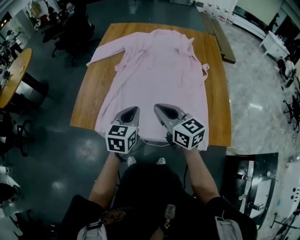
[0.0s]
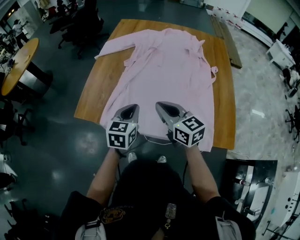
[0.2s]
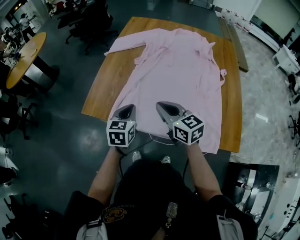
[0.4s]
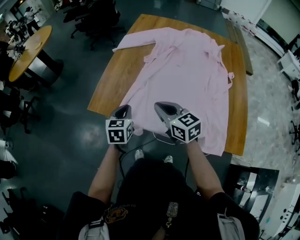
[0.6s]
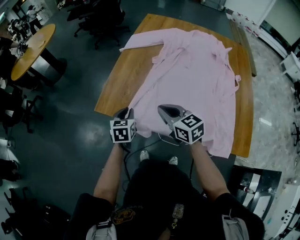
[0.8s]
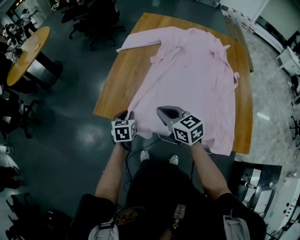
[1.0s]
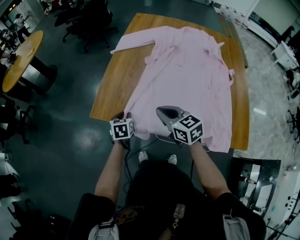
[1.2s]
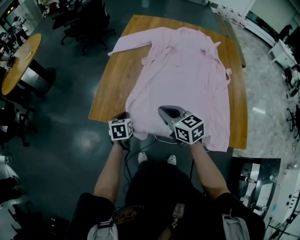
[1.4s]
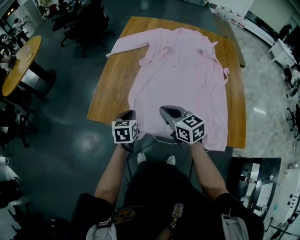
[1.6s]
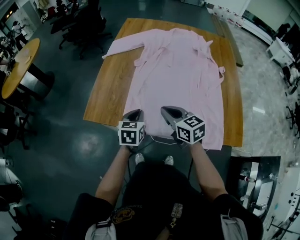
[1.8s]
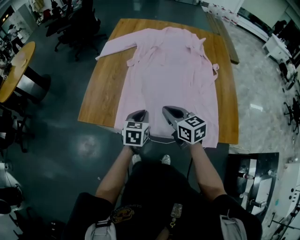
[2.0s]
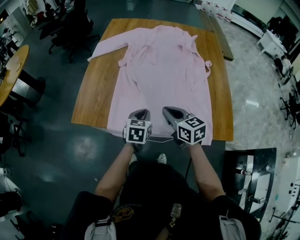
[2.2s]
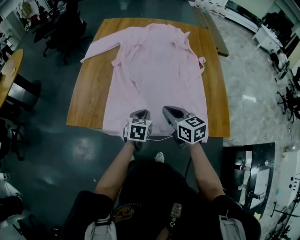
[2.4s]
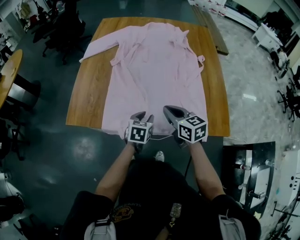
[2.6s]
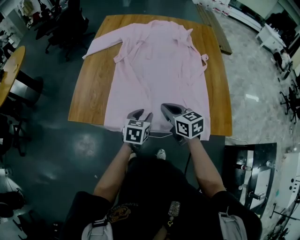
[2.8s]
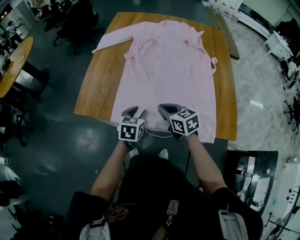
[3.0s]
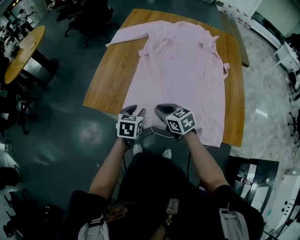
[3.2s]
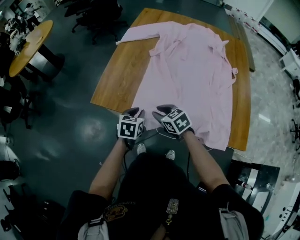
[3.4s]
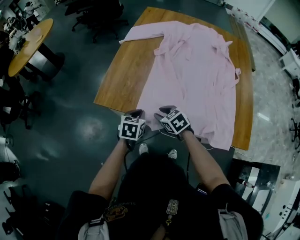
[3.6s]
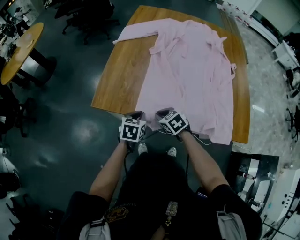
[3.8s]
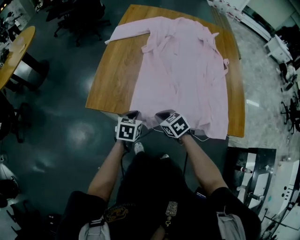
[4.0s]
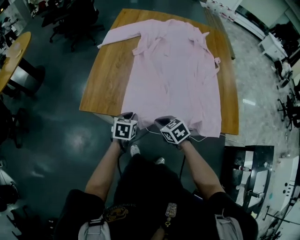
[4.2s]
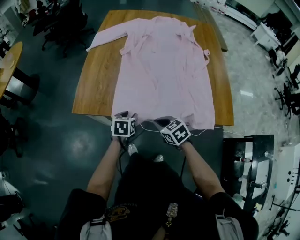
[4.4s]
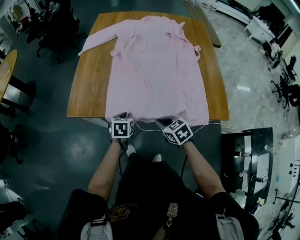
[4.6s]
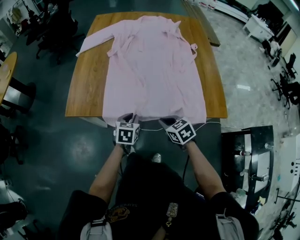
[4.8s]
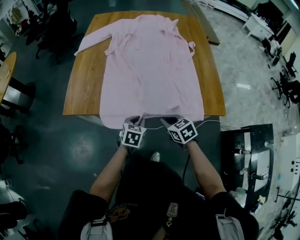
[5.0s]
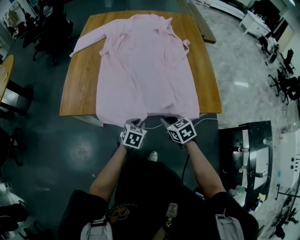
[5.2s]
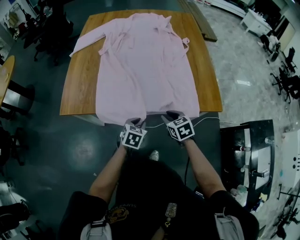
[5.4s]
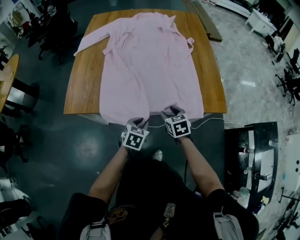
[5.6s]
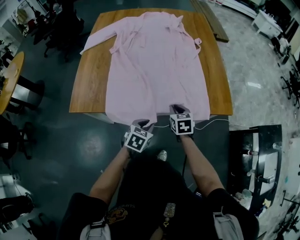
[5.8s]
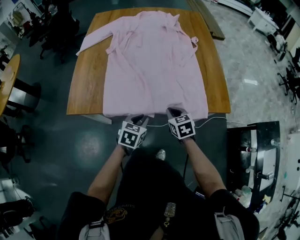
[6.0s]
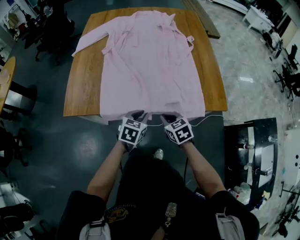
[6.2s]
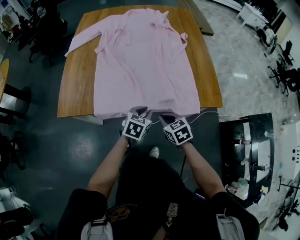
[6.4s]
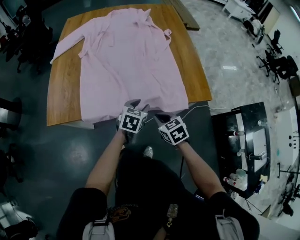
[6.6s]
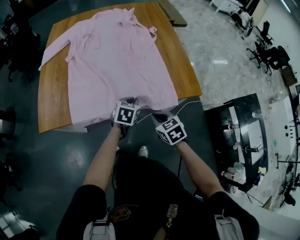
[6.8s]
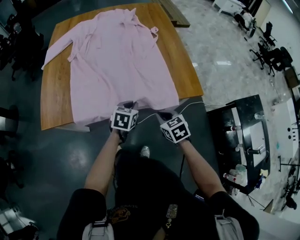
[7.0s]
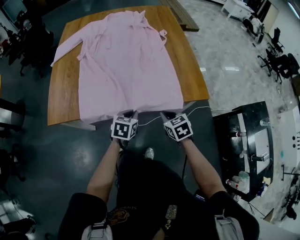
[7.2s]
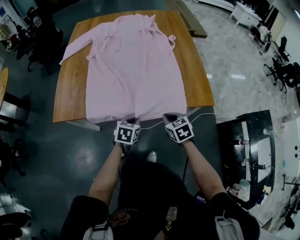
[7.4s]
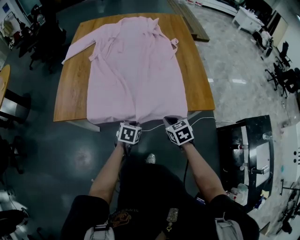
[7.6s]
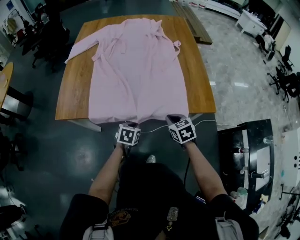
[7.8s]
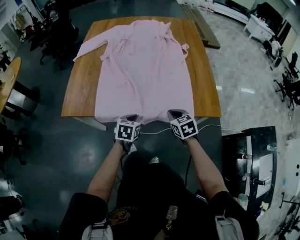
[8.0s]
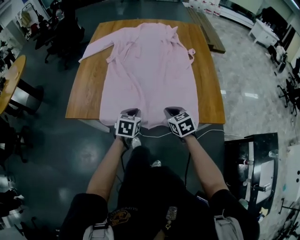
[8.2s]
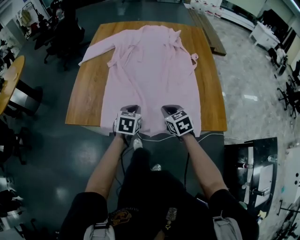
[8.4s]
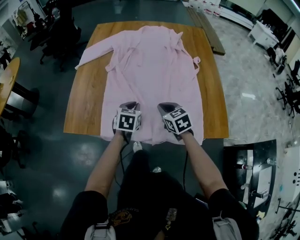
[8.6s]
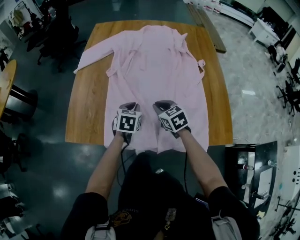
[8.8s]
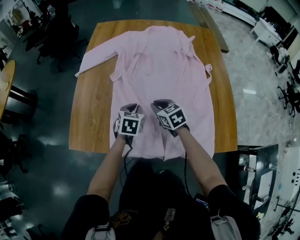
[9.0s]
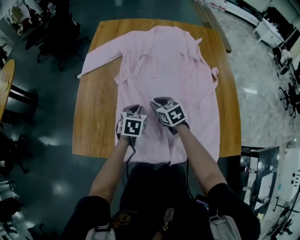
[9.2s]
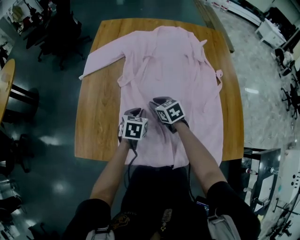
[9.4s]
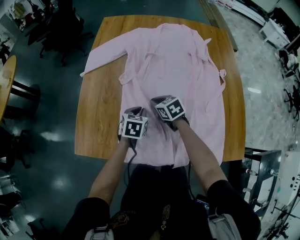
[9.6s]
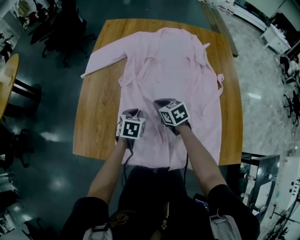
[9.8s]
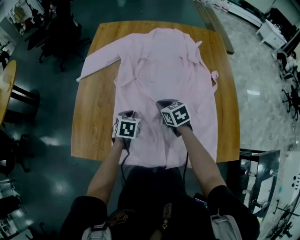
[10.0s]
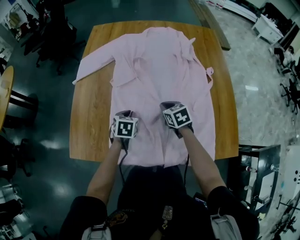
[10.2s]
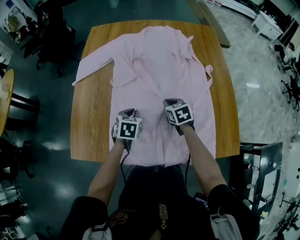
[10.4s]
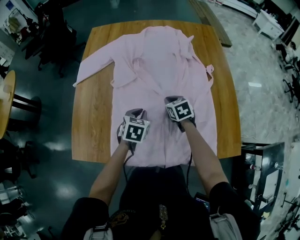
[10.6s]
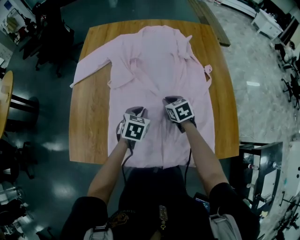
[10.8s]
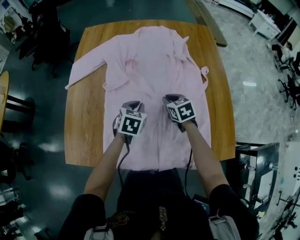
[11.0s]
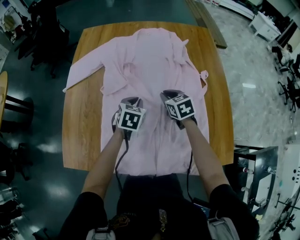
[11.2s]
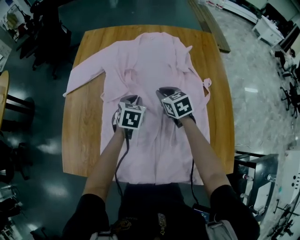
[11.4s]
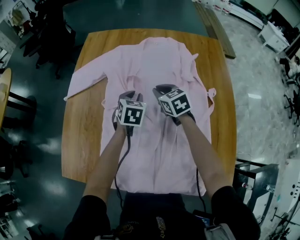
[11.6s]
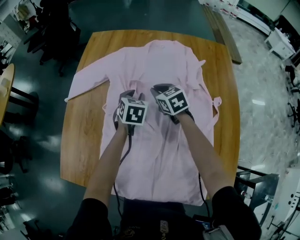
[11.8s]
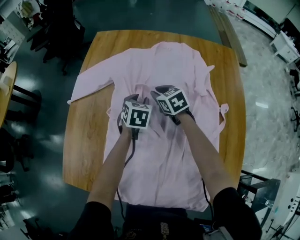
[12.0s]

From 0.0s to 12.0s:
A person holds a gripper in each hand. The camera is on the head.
From 0.0s to 1.6s: The left gripper travels to the left, downward and forward by roughly 20 cm, changes its angle by roughly 20 degrees, and opens, then closes once more; the right gripper goes roughly 15 cm to the left and downward.
From 1.6s to 3.0s: The right gripper heads to the right and downward, covering about 10 cm. Meanwhile the left gripper shifts roughly 15 cm to the right, and opens up.
From 3.0s to 4.4s: The right gripper shifts approximately 15 cm backward, to the left and downward, and opens, then closes once more. Meanwhile the left gripper moves to the left and downward, about 10 cm, and closes, then reopens.
From 4.4s to 6.0s: The left gripper shifts by about 15 cm, changes its angle by some 20 degrees, and closes, while the right gripper shifts by roughly 15 cm, changes its angle by some 20 degrees, and opens, then closes again.
From 6.0s to 7.6s: The left gripper goes roughly 10 cm downward and to the right. The right gripper shifts some 10 cm to the right.
From 7.6s to 9.0s: The left gripper shifts about 30 cm forward; the right gripper shifts about 35 cm forward and to the left.
From 9.0s to 10.4s: The right gripper travels to the right by some 10 cm.
From 10.4s to 12.0s: The grippers both shift forward by approximately 25 cm. The left gripper opens up.

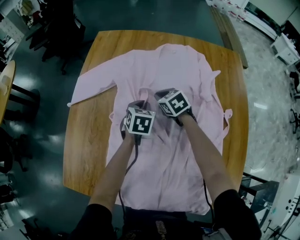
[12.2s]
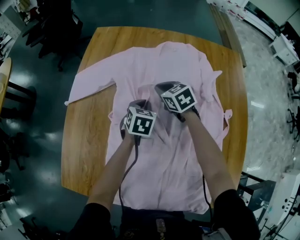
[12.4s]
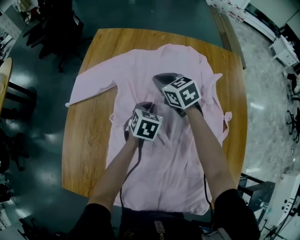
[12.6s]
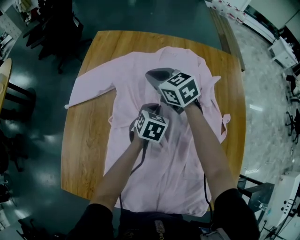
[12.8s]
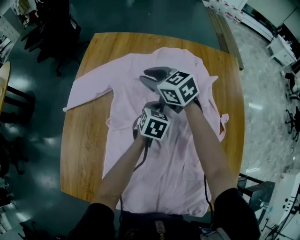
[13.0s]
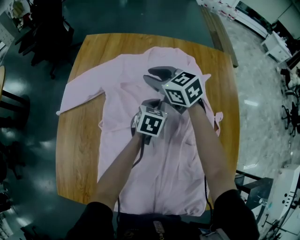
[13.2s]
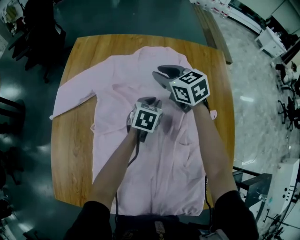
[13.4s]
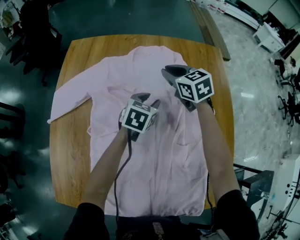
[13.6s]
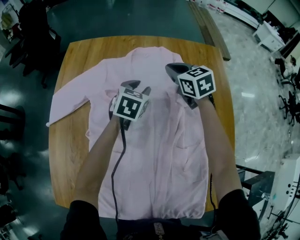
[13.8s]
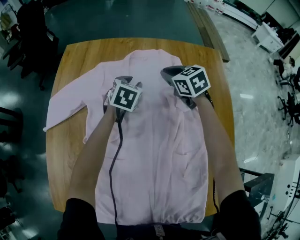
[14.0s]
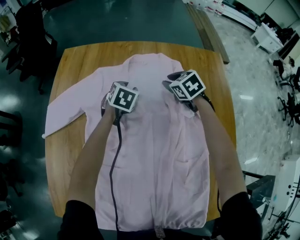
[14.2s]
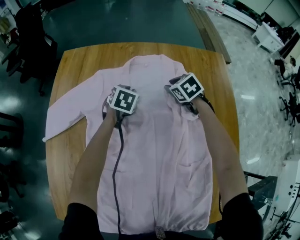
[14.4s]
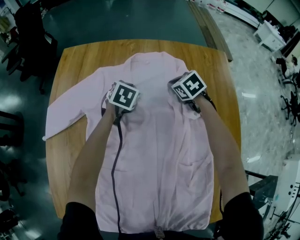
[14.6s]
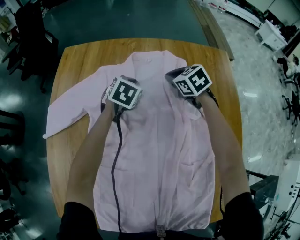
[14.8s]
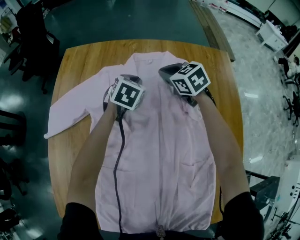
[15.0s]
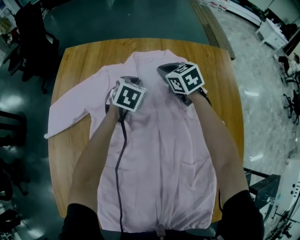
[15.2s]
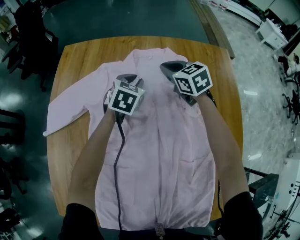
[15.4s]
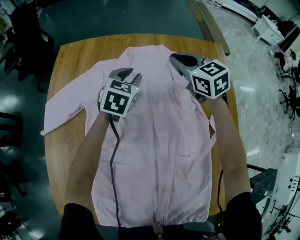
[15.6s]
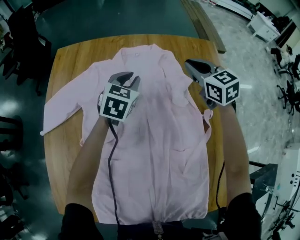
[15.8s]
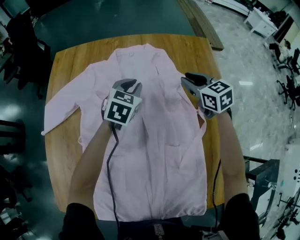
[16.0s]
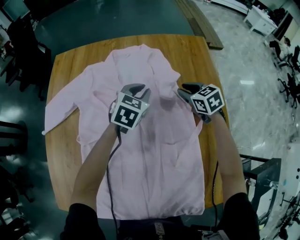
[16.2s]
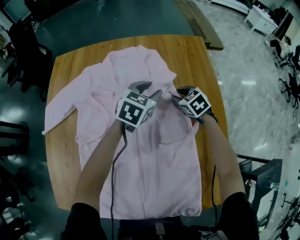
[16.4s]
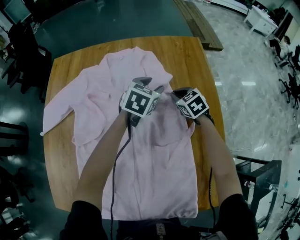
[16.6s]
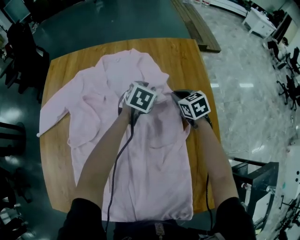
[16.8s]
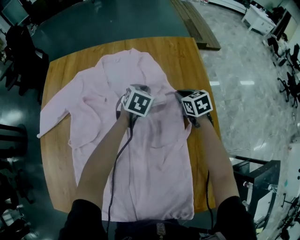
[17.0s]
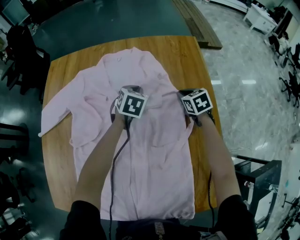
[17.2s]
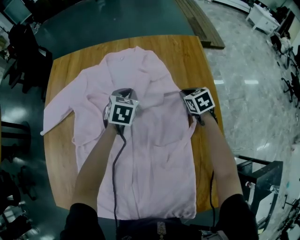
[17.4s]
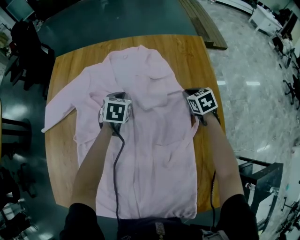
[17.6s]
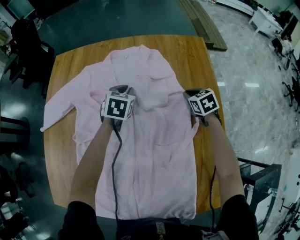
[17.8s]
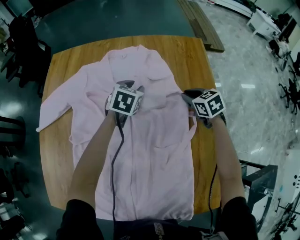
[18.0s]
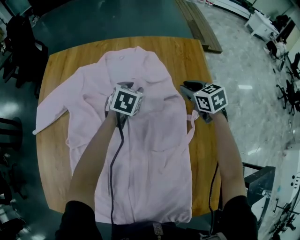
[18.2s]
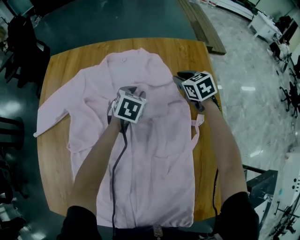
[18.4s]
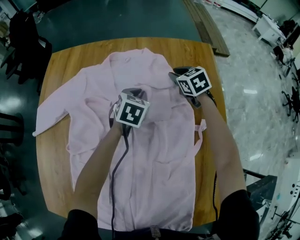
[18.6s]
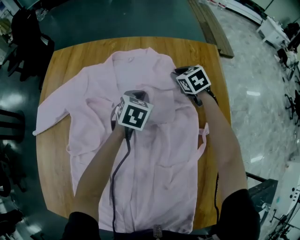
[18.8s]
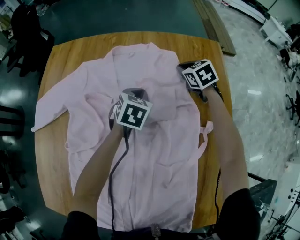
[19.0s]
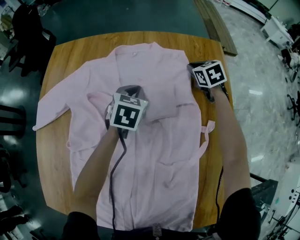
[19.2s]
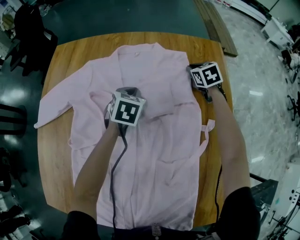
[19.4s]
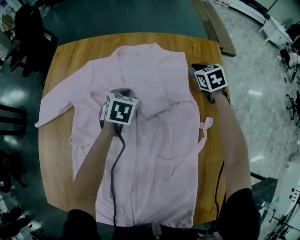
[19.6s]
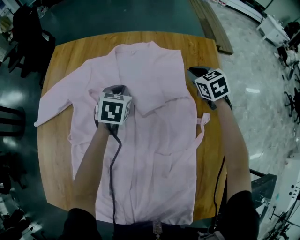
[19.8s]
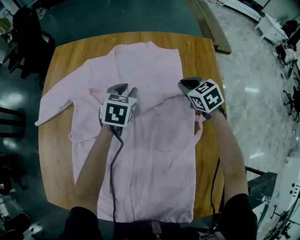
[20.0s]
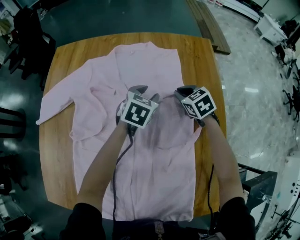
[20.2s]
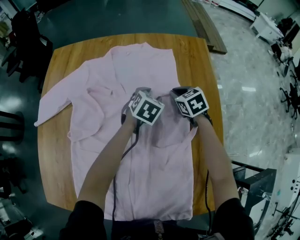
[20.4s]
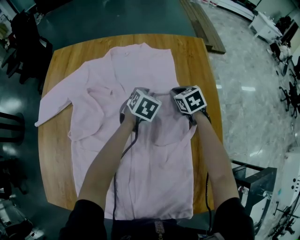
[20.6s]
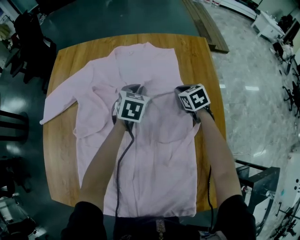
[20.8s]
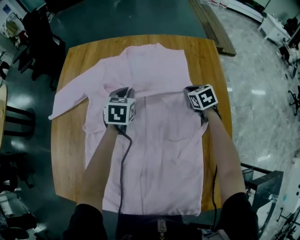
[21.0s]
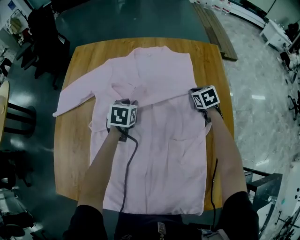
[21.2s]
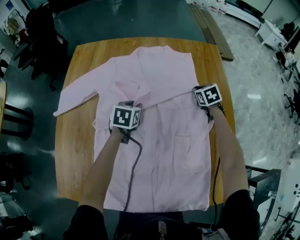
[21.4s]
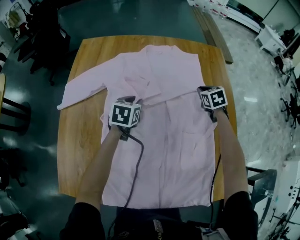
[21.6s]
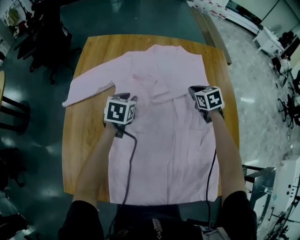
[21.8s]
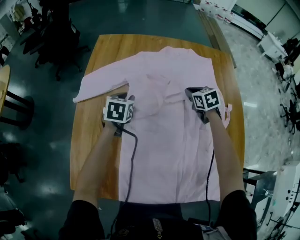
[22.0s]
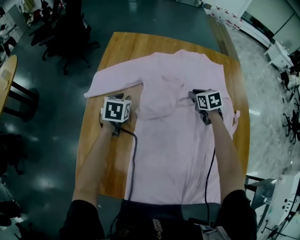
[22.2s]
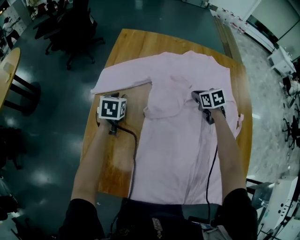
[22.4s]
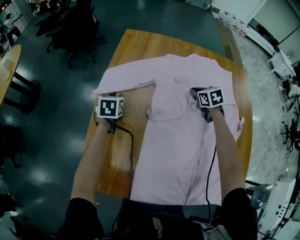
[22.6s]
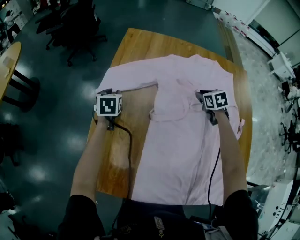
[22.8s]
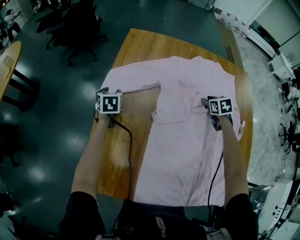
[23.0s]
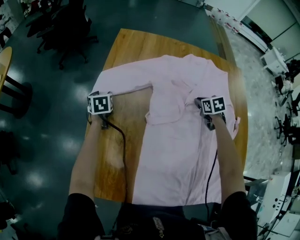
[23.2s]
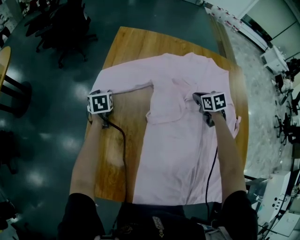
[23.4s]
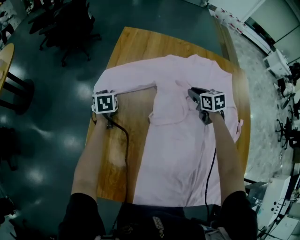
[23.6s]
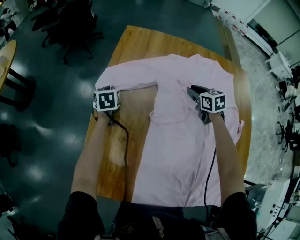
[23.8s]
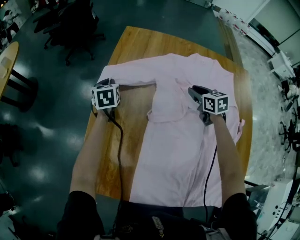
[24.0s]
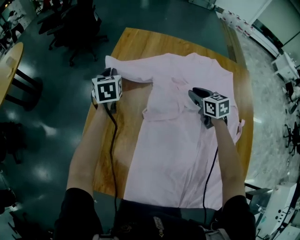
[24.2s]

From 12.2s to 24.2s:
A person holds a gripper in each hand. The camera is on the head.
From 12.2s to 13.8s: The right gripper moves to the right, upward and forward, about 25 cm; the left gripper moves to the right, forward and upward, some 15 cm, turns by roughly 20 degrees, and opens up.
From 13.8s to 15.2s: Both grippers travel together forward and downward, some 10 cm. The left gripper closes its fingers, while the right gripper opens, then closes again.
From 15.2s to 16.6s: Both grippers travel together to the right and backward, approximately 25 cm. The left gripper opens up, while the right gripper opens, then closes again.
From 16.6s to 18.2s: The right gripper moves upward, some 5 cm. The left gripper moves to the left and downward, approximately 10 cm, and closes, then opens again.
From 18.2s to 19.8s: The left gripper goes roughly 10 cm to the left, and closes. Meanwhile the right gripper shifts about 5 cm forward.
From 19.8s to 21.2s: The right gripper travels backward and downward by about 10 cm, while the left gripper goes about 10 cm backward, goes to the right and returns, some 15 cm each way, and opens, then closes once more.
From 21.2s to 22.6s: The grippers both shift to the left by some 35 cm.
From 22.6s to 24.2s: The right gripper travels to the right and back again, roughly 5 cm each way. The left gripper moves upward and forward, roughly 10 cm, rotates some 20 degrees, and opens and closes again.
